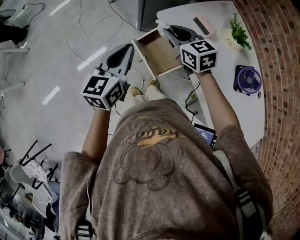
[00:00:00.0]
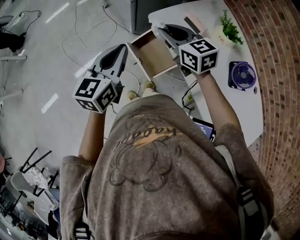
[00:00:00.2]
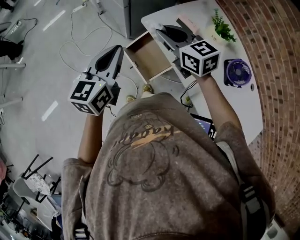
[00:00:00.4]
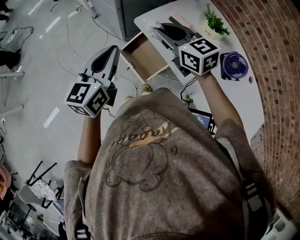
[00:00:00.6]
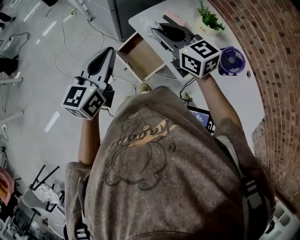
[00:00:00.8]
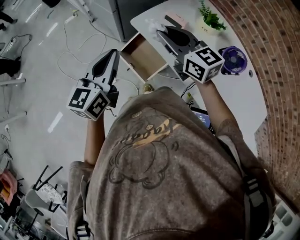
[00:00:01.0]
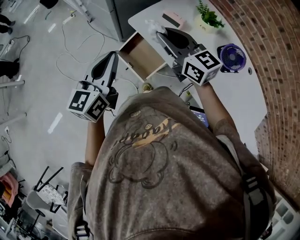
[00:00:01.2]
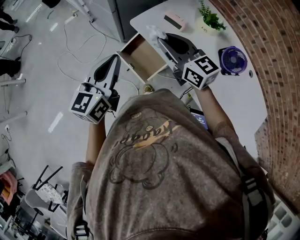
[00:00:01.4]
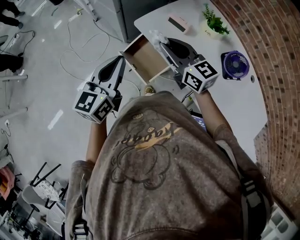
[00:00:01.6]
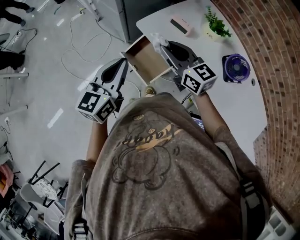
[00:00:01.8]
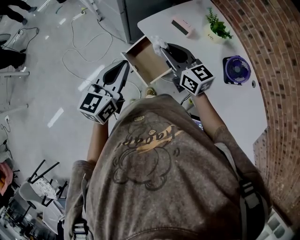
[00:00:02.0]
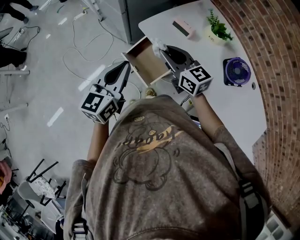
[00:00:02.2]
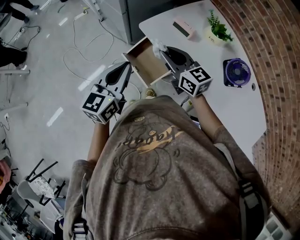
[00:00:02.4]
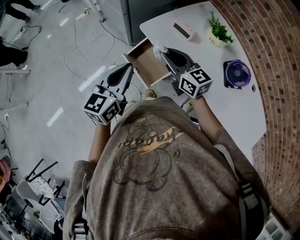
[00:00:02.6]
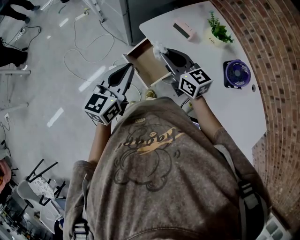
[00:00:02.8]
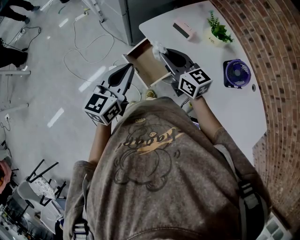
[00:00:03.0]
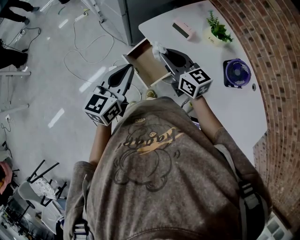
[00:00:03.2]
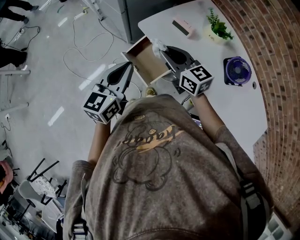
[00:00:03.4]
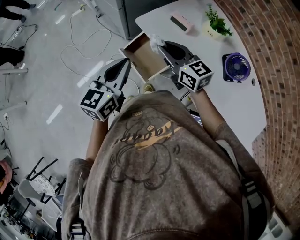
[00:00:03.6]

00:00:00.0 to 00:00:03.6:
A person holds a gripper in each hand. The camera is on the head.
00:00:00.0 to 00:00:01.8: The right gripper shifts about 10 cm backward, upward and to the right, and changes its angle by approximately 20 degrees; the left gripper moves to the right, some 5 cm.
00:00:01.8 to 00:00:03.6: The grippers move only a little.

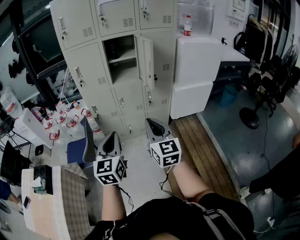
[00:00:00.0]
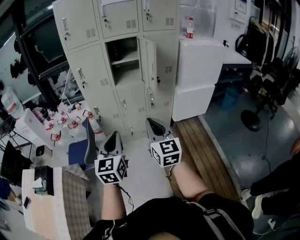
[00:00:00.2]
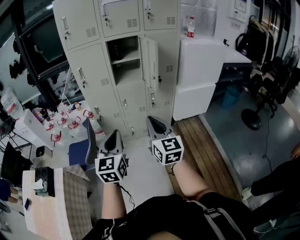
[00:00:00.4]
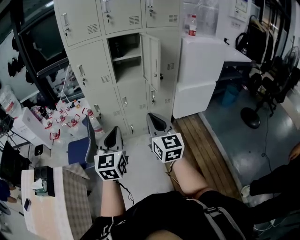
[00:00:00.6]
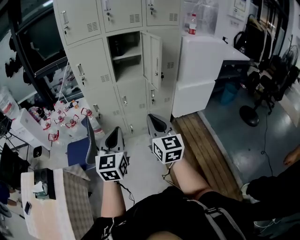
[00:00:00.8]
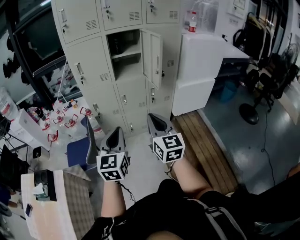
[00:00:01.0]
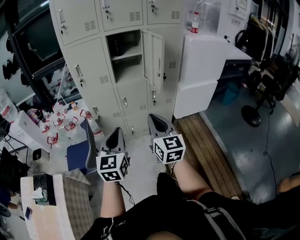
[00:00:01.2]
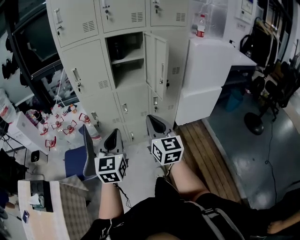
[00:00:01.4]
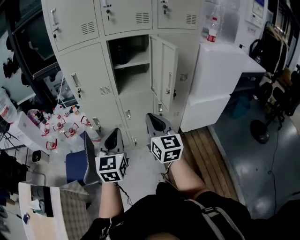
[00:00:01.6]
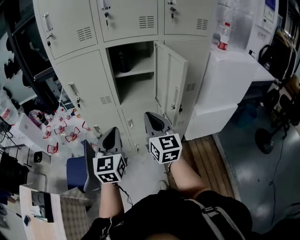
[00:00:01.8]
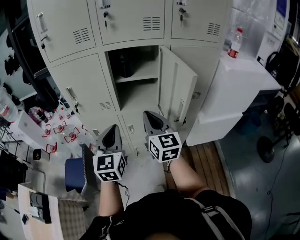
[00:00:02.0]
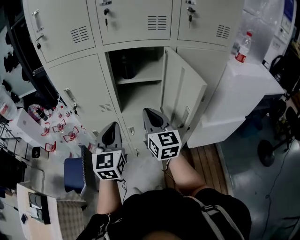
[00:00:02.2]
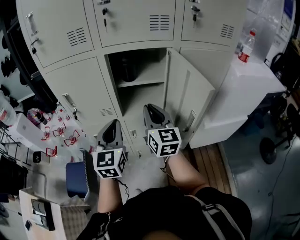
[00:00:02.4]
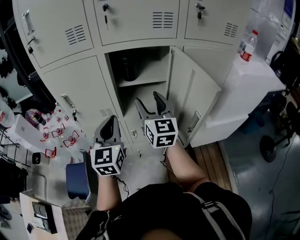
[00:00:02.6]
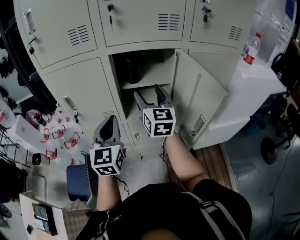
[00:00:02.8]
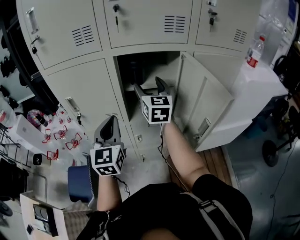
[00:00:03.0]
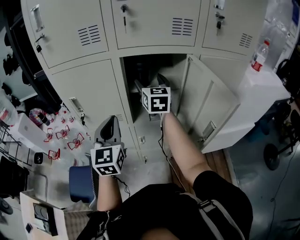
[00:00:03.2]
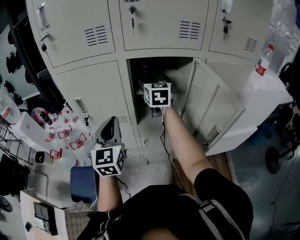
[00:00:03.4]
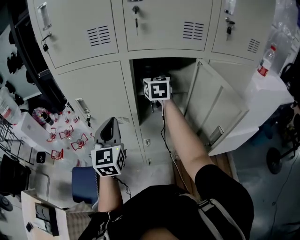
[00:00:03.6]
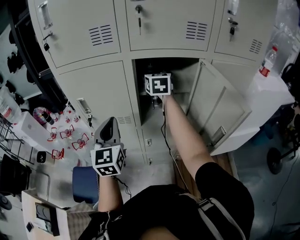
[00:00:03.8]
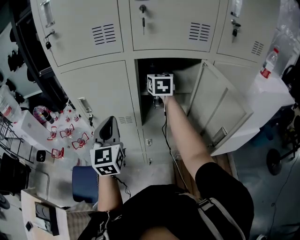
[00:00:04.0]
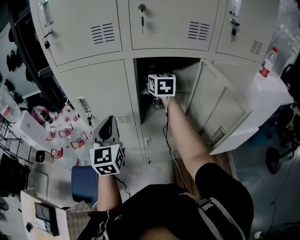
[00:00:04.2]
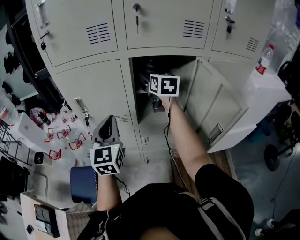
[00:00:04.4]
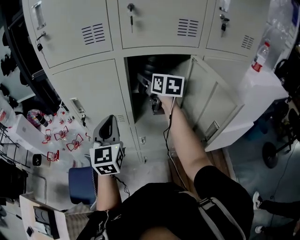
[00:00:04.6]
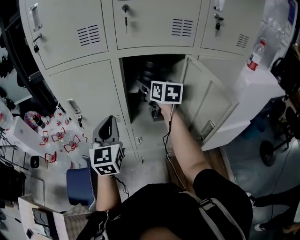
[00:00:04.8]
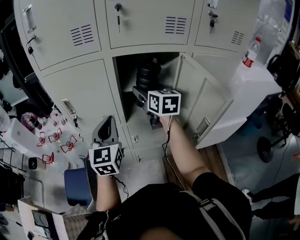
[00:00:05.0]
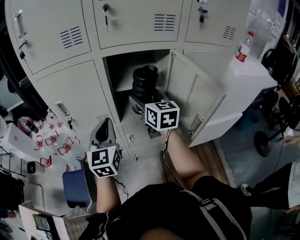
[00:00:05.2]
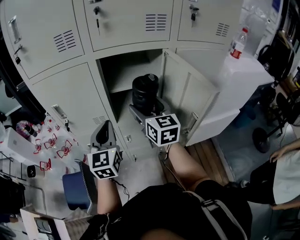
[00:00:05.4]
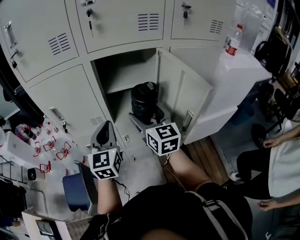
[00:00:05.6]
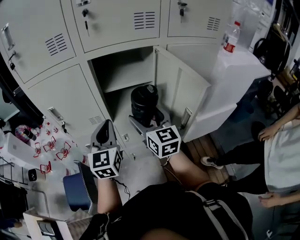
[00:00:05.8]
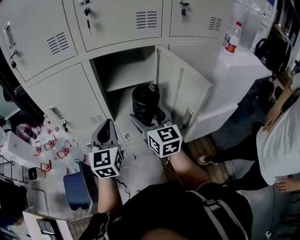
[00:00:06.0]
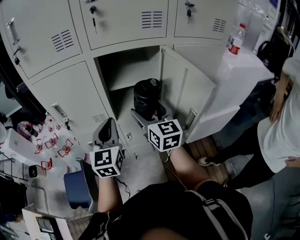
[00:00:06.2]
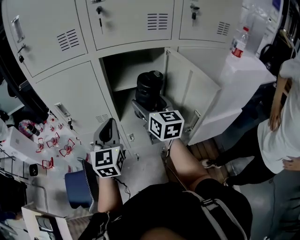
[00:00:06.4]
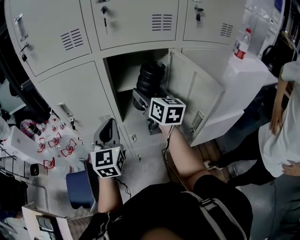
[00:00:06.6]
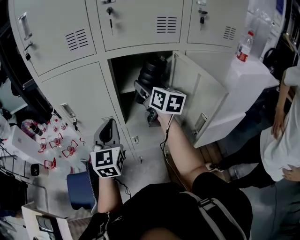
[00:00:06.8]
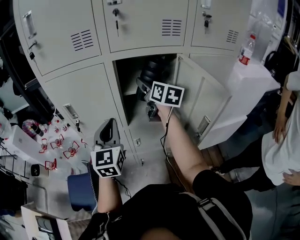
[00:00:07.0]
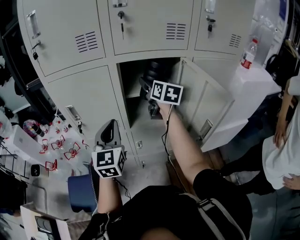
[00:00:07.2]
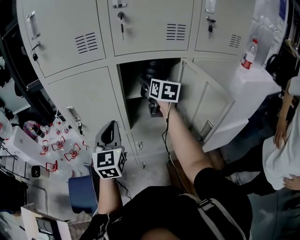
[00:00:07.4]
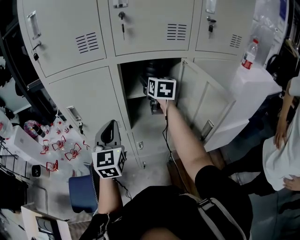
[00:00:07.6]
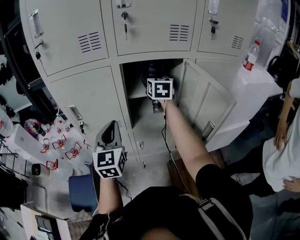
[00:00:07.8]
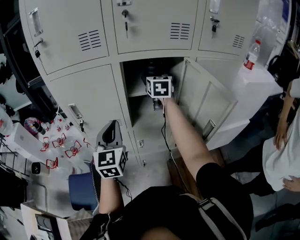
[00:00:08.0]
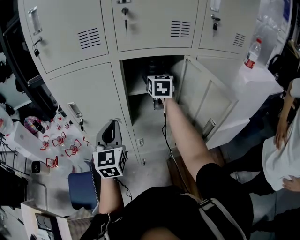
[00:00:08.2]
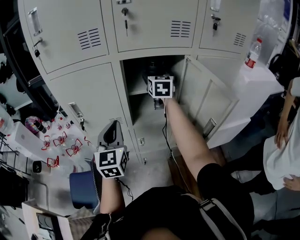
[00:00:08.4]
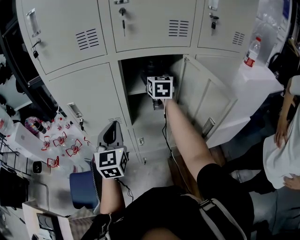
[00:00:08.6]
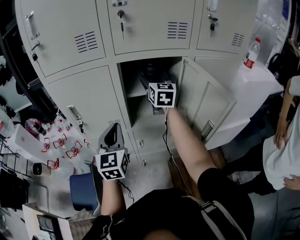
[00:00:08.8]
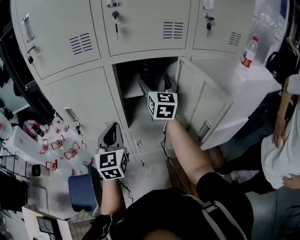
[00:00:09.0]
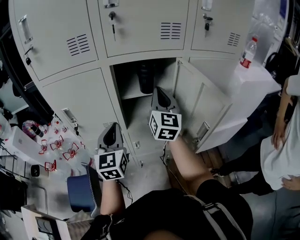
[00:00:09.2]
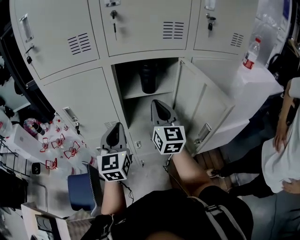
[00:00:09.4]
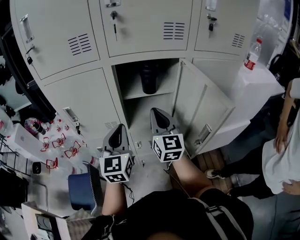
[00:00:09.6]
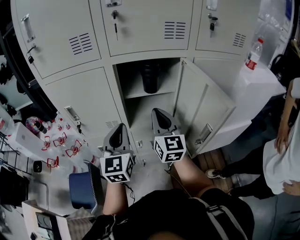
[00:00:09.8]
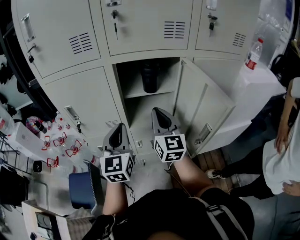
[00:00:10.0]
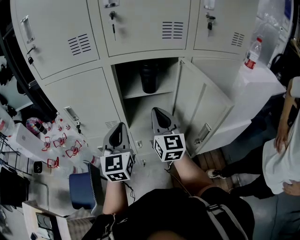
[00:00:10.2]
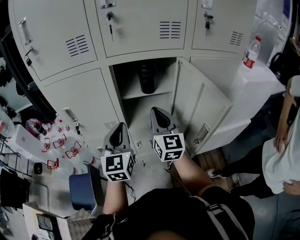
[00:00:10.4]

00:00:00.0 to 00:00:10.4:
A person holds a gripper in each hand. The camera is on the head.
00:00:00.0 to 00:00:01.4: Both grippers travel together forward, some 15 cm.
00:00:01.4 to 00:00:03.0: The two grippers travel together, forward, about 50 cm. The right gripper opens its fingers.
00:00:03.0 to 00:00:04.4: The left gripper heads to the left, covering roughly 5 cm. Meanwhile the right gripper shifts some 10 cm forward.
00:00:04.4 to 00:00:06.0: The right gripper moves backward, about 20 cm, while the left gripper heads to the right, covering about 10 cm.
00:00:06.0 to 00:00:07.4: The right gripper travels forward by about 20 cm, while the left gripper is displaced to the left by roughly 5 cm.
00:00:07.4 to 00:00:09.0: The right gripper swivels some 20 degrees.
00:00:09.0 to 00:00:10.4: The right gripper is displaced backward and downward by about 15 cm, and closes its fingers.

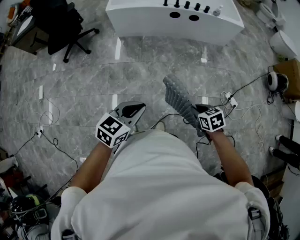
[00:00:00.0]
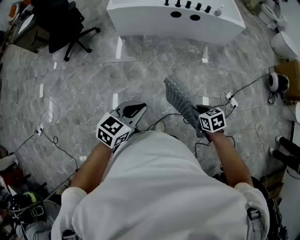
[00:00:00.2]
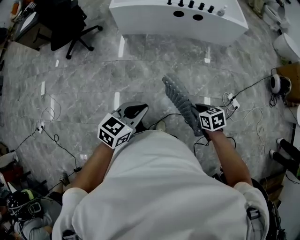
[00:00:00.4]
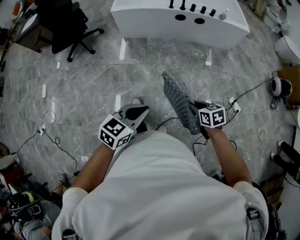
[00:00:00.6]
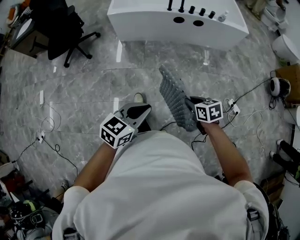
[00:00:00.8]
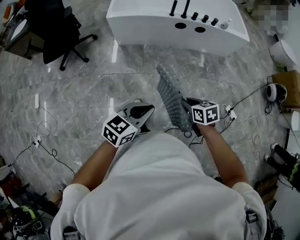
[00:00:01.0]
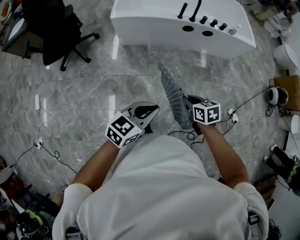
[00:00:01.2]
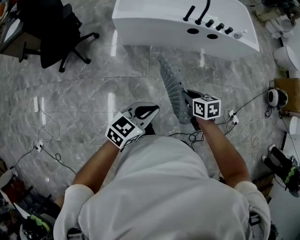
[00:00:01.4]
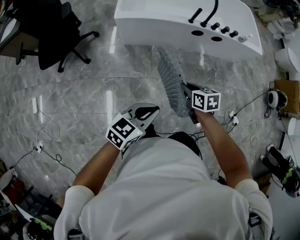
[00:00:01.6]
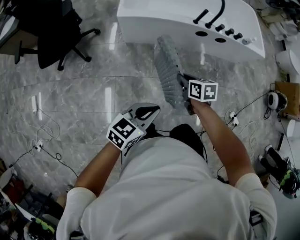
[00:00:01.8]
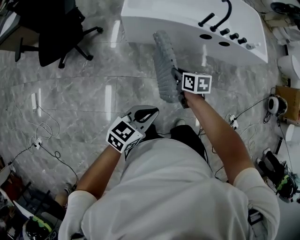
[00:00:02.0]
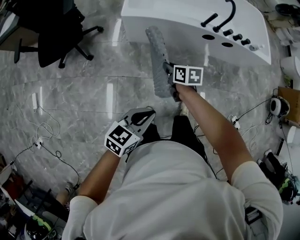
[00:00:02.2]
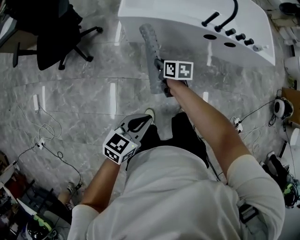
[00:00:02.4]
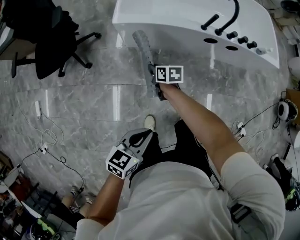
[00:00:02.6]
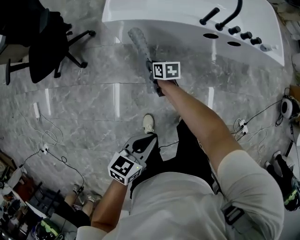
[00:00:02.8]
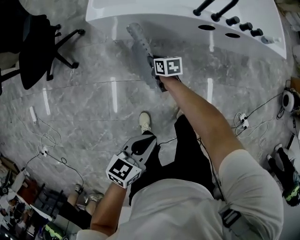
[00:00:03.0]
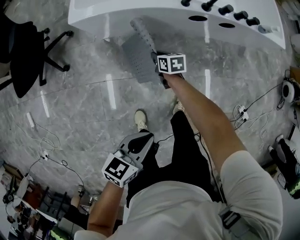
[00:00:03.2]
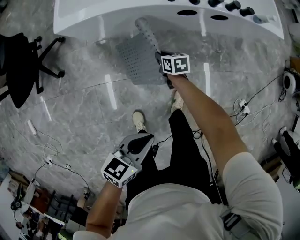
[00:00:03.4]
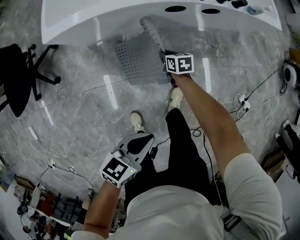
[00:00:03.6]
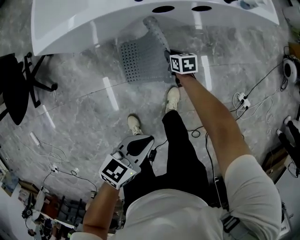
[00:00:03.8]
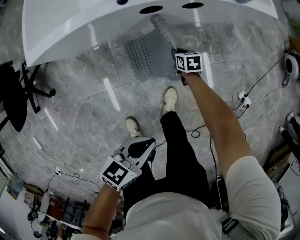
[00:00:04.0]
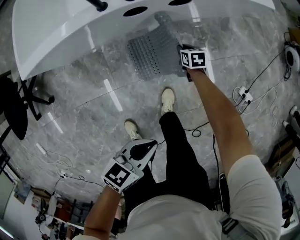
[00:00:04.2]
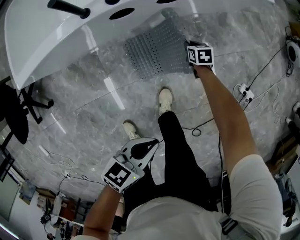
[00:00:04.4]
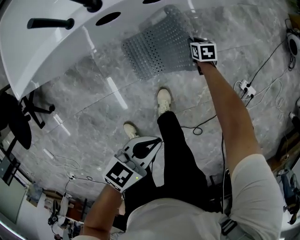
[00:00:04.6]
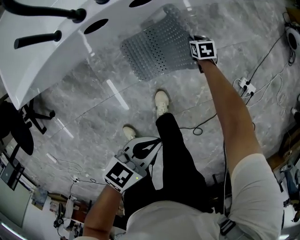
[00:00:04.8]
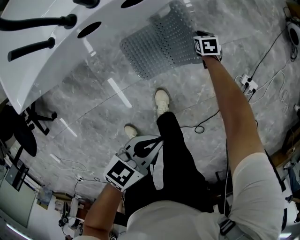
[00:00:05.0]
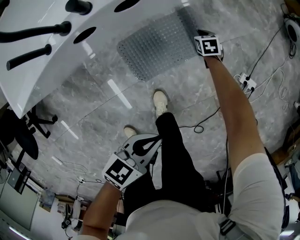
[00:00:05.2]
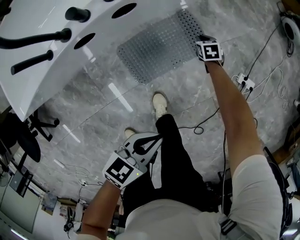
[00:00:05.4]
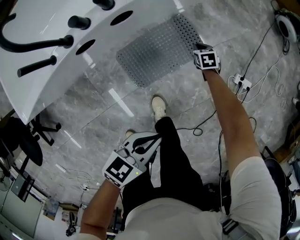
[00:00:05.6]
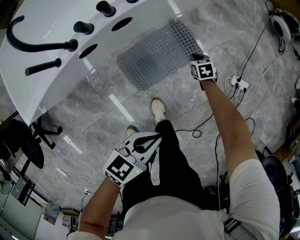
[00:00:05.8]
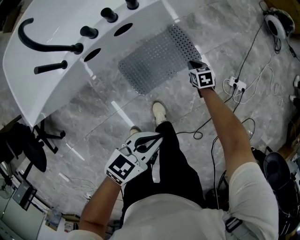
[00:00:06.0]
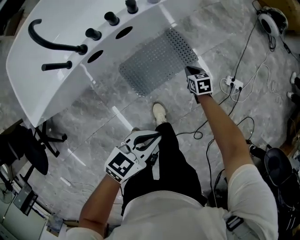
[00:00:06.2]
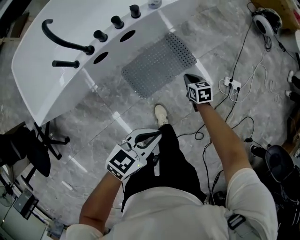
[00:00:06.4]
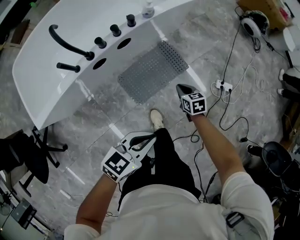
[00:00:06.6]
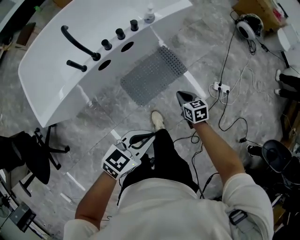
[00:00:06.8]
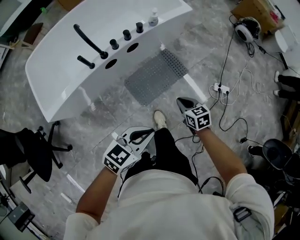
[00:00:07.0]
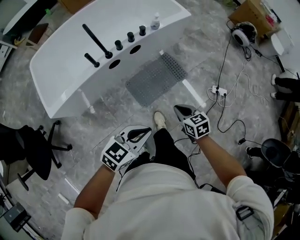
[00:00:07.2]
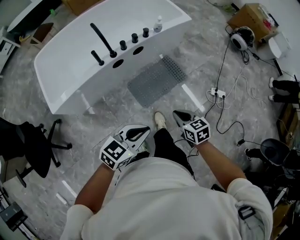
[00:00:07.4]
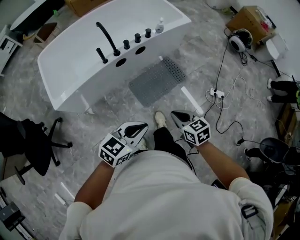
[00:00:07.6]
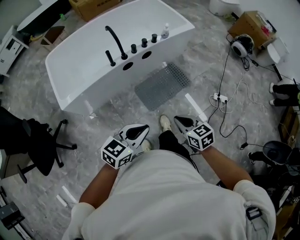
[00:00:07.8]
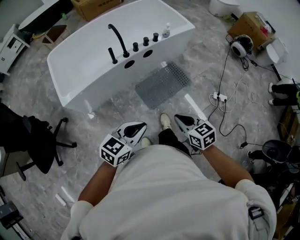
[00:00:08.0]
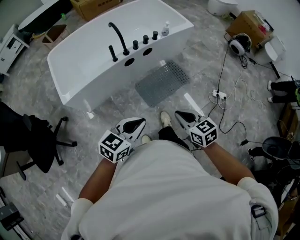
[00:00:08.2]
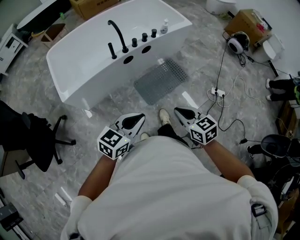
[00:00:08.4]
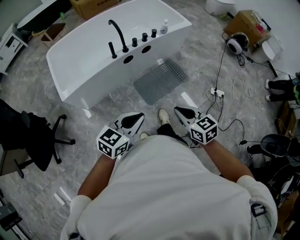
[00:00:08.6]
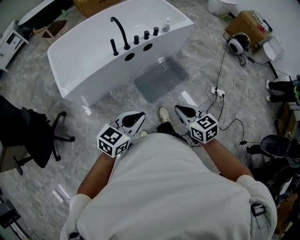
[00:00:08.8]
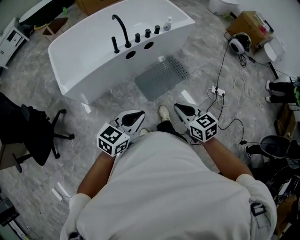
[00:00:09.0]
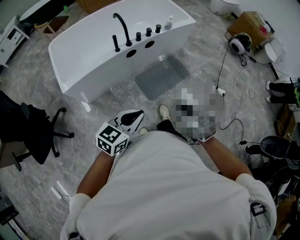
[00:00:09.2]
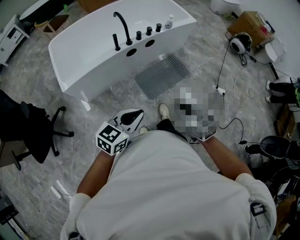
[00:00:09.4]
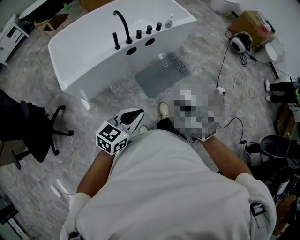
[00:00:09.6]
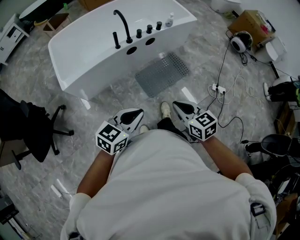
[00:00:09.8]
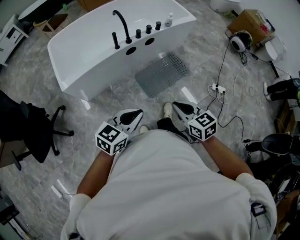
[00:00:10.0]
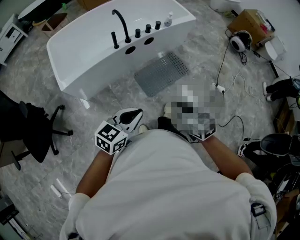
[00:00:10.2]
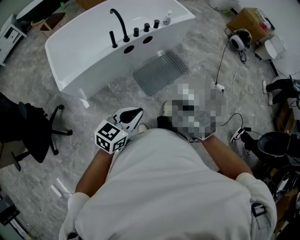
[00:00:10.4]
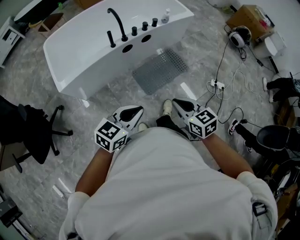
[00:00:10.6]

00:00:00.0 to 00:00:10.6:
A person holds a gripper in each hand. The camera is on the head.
00:00:00.0 to 00:00:01.6: Both grippers travel together forward and to the left, approximately 40 cm.
00:00:01.6 to 00:00:03.0: The left gripper shifts approximately 20 cm downward, forward and to the right, and rotates some 20 degrees; the right gripper travels forward and downward by about 40 cm.
00:00:03.0 to 00:00:04.6: The left gripper ends up about 35 cm from where it was, and changes its angle by approximately 30 degrees, while the right gripper changes place by some 70 cm, and changes its angle by approximately 30 degrees.
00:00:04.6 to 00:00:06.0: The right gripper moves to the right and upward, about 15 cm, while the left gripper goes roughly 10 cm forward and upward.
00:00:06.0 to 00:00:07.6: The right gripper travels backward and upward by some 60 cm, and swivels approximately 20 degrees, while the left gripper travels backward and upward by roughly 30 cm.
00:00:07.6 to 00:00:09.0: The left gripper travels backward and to the left by roughly 10 cm; the right gripper travels backward, upward and to the left by approximately 15 cm.
00:00:09.0 to 00:00:10.6: The grippers stay close to where they were, moving slightly.
